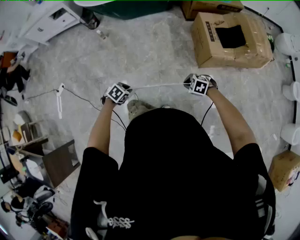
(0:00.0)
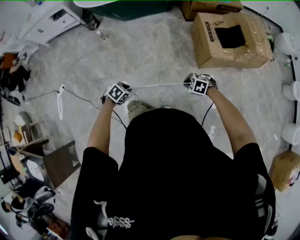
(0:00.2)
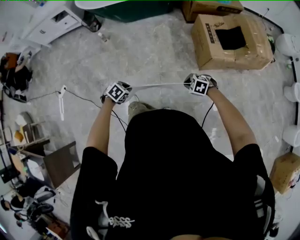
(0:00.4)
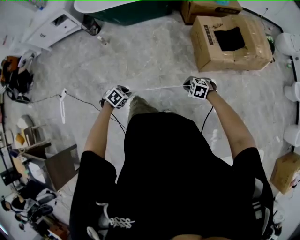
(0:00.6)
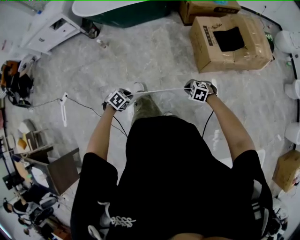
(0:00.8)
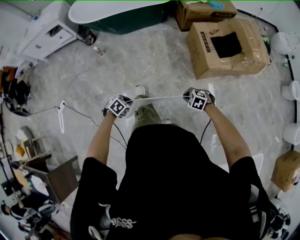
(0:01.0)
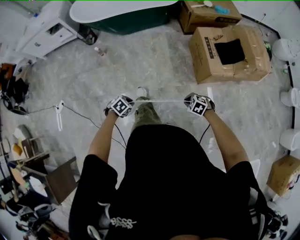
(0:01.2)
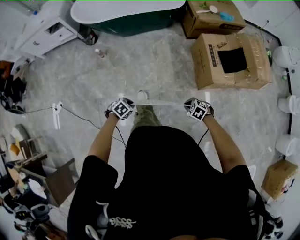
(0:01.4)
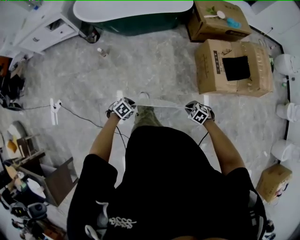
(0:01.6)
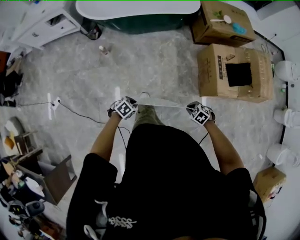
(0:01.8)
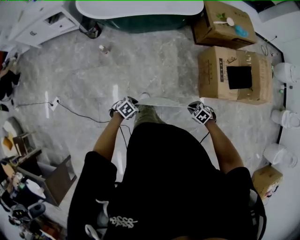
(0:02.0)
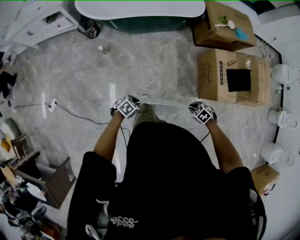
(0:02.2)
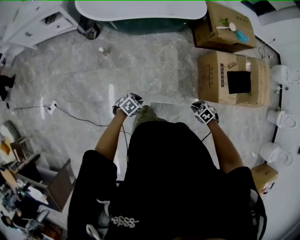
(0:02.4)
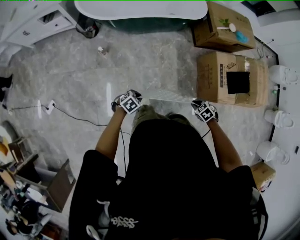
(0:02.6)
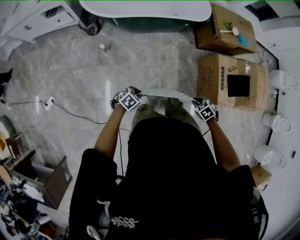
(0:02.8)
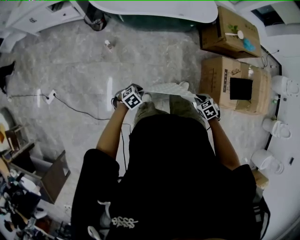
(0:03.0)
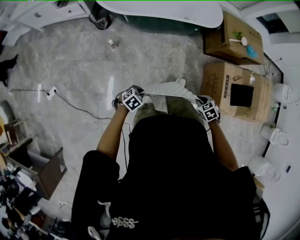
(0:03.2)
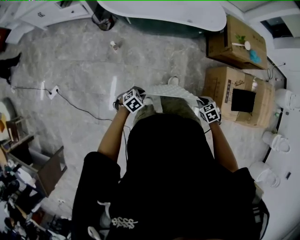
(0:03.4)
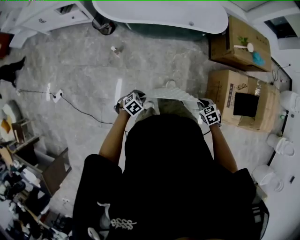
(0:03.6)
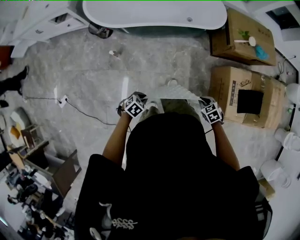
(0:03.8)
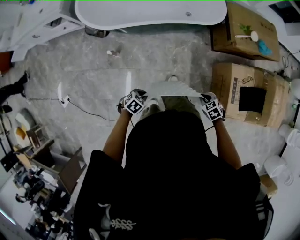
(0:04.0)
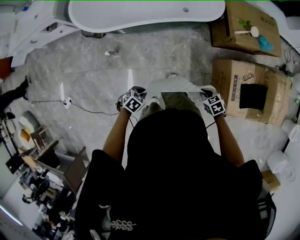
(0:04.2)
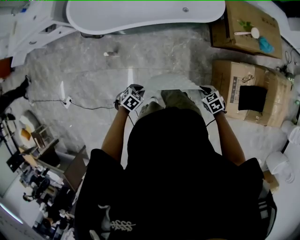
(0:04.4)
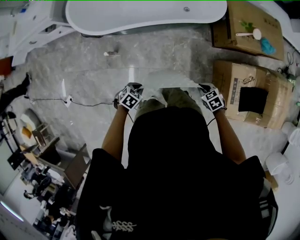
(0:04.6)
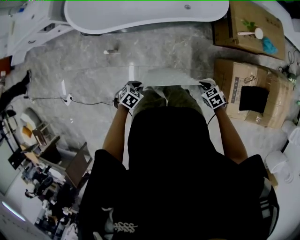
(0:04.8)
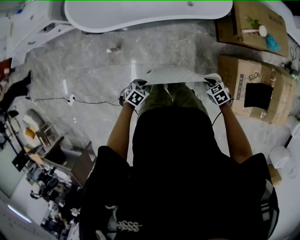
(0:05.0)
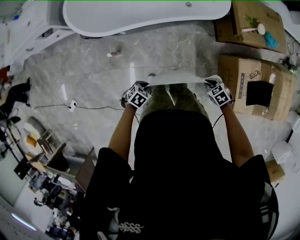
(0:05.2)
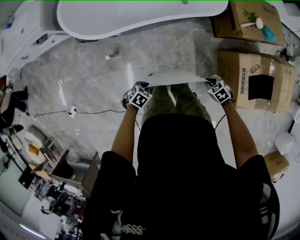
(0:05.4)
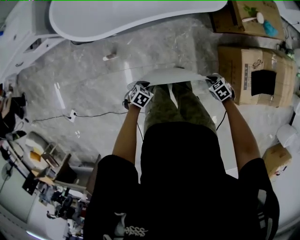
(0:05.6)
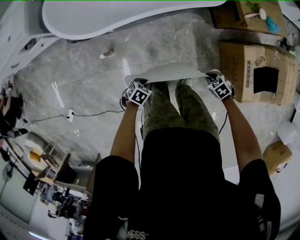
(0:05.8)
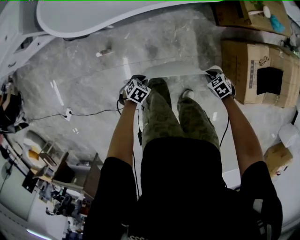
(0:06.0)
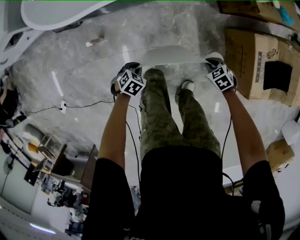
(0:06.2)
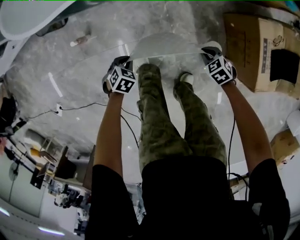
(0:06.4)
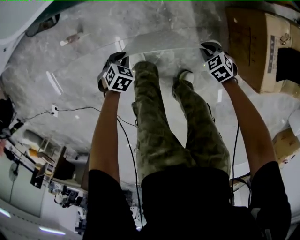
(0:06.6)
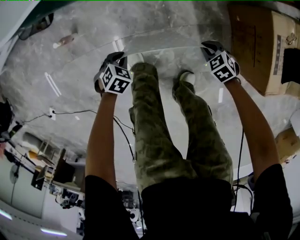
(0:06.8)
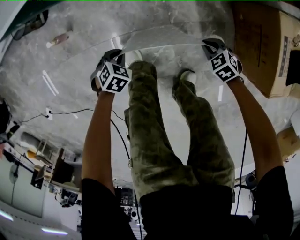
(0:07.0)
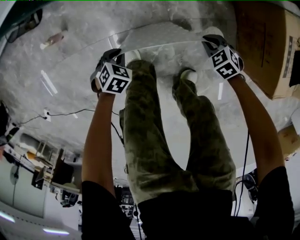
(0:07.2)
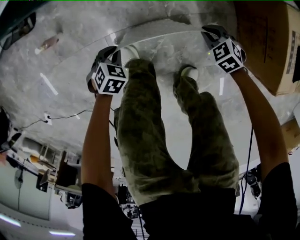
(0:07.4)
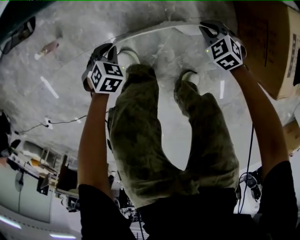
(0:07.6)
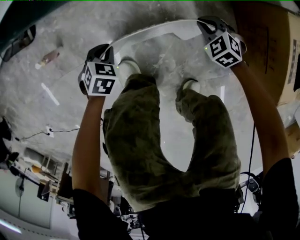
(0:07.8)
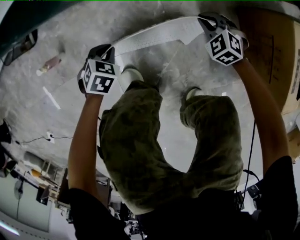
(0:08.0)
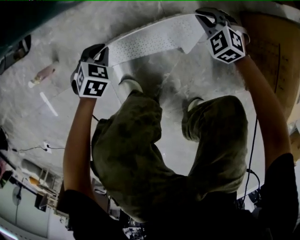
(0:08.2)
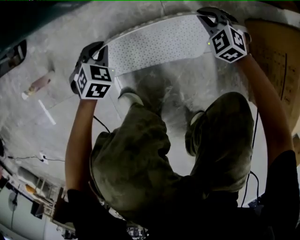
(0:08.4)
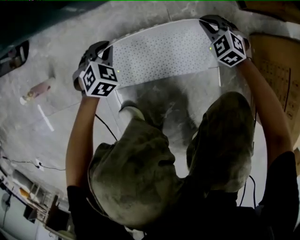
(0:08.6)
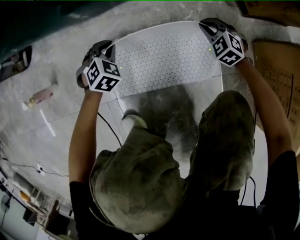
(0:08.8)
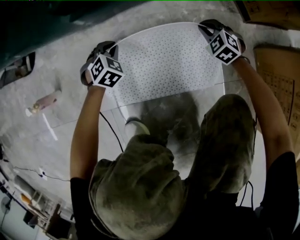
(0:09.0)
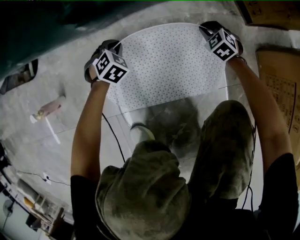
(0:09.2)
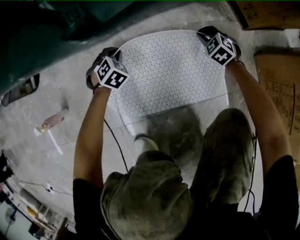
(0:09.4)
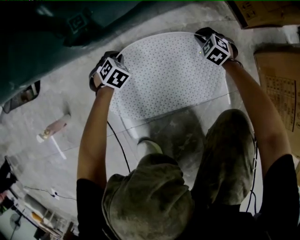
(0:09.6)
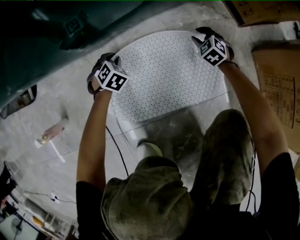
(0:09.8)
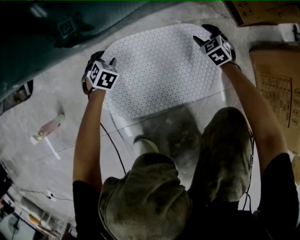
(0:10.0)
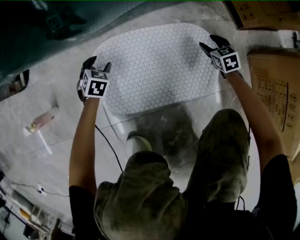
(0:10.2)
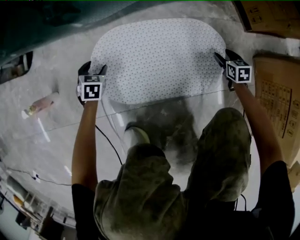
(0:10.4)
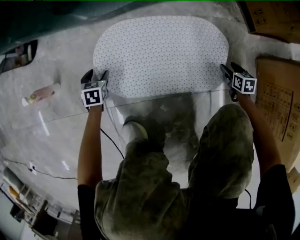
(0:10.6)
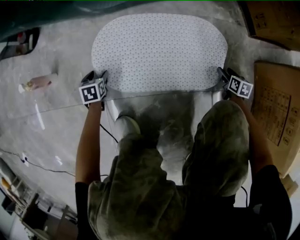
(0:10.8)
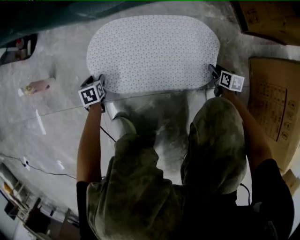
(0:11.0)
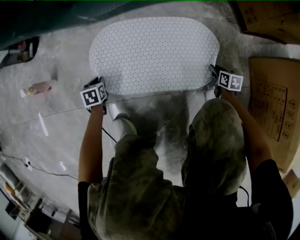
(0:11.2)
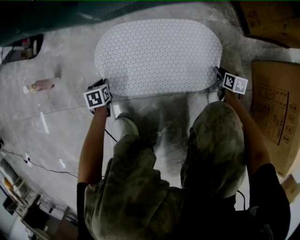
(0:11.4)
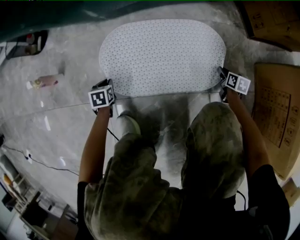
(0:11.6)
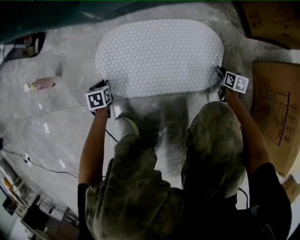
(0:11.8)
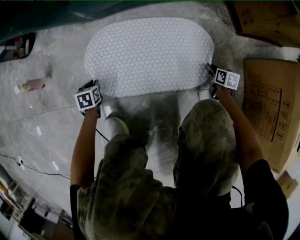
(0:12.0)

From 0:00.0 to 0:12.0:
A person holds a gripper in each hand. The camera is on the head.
From 0:00.0 to 0:01.6: The left gripper ends up roughly 20 cm from where it was, while the right gripper shifts by approximately 20 cm.
From 0:01.6 to 0:03.0: The left gripper ends up some 25 cm from where it was. Meanwhile the right gripper moves approximately 30 cm.
From 0:03.0 to 0:04.4: The right gripper moves some 30 cm; the left gripper changes place by approximately 25 cm.
From 0:04.4 to 0:06.0: Both grippers travel together downward, approximately 20 cm.
From 0:06.0 to 0:07.6: The grippers both shift downward by about 35 cm. The left gripper turns by about 20 degrees.
From 0:07.6 to 0:09.0: Both grippers move forward and downward, about 35 cm.
From 0:09.0 to 0:10.4: The right gripper is displaced to the right and downward by approximately 15 cm, rolls clockwise, seen from behind, by about 50 degrees, and opens up. The left gripper travels to the left and downward by about 15 cm, rotates roughly 30 degrees, and opens.
From 0:10.4 to 0:12.0: The left gripper goes approximately 15 cm backward, rotates about 30 degrees, and closes its fingers, while the right gripper heads backward, covering about 10 cm, rotates roughly 20 degrees, and closes up.

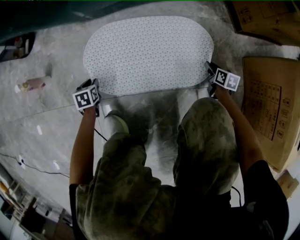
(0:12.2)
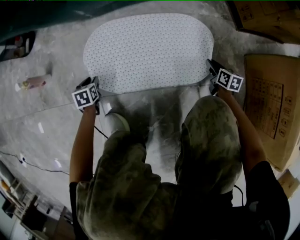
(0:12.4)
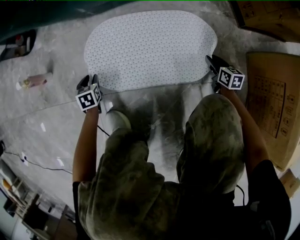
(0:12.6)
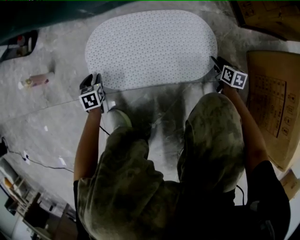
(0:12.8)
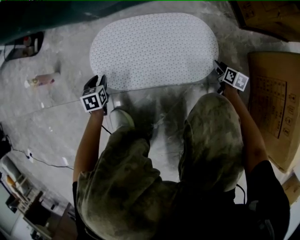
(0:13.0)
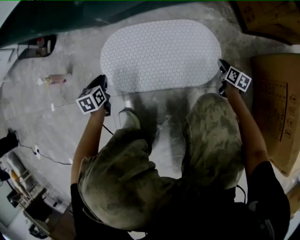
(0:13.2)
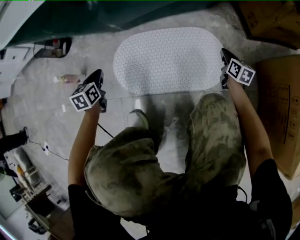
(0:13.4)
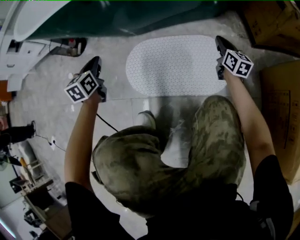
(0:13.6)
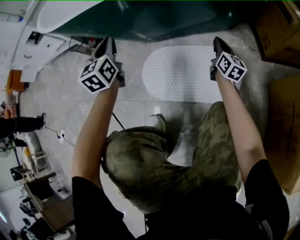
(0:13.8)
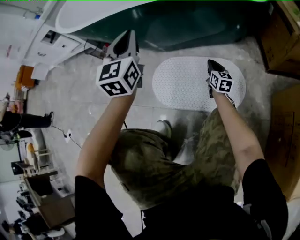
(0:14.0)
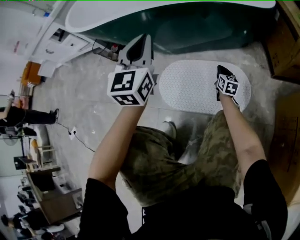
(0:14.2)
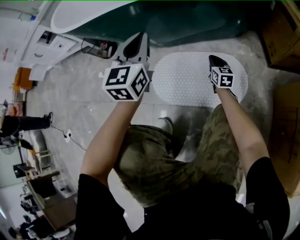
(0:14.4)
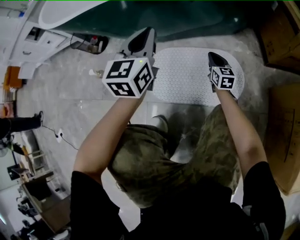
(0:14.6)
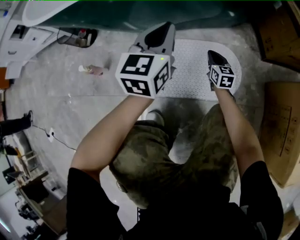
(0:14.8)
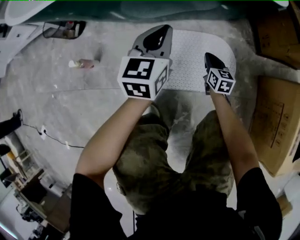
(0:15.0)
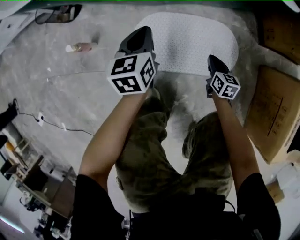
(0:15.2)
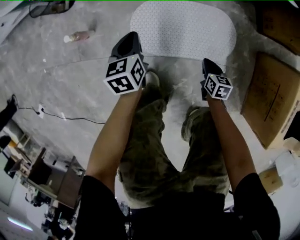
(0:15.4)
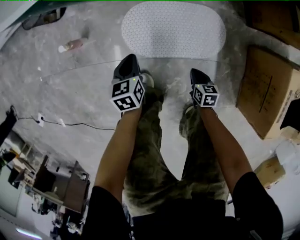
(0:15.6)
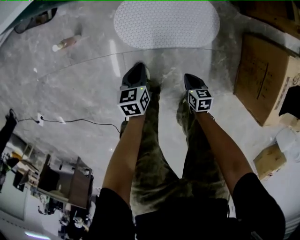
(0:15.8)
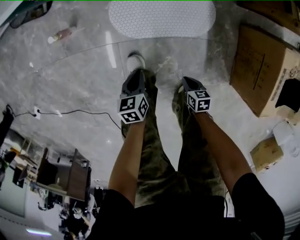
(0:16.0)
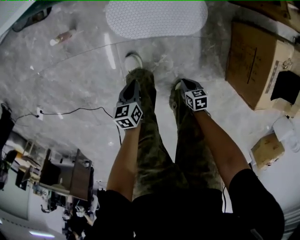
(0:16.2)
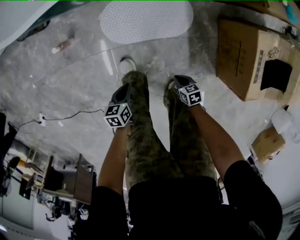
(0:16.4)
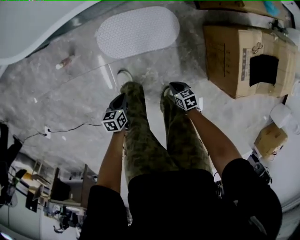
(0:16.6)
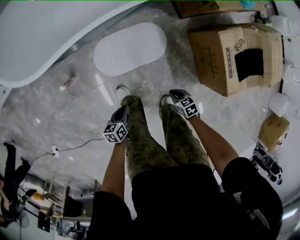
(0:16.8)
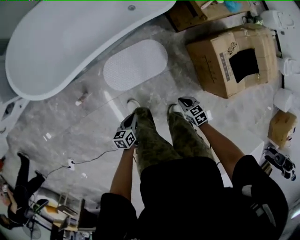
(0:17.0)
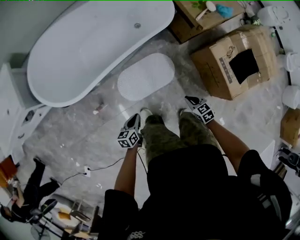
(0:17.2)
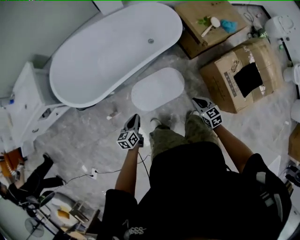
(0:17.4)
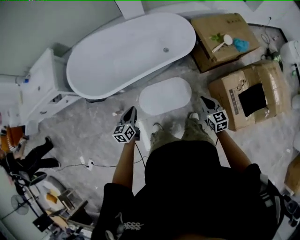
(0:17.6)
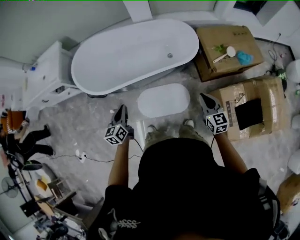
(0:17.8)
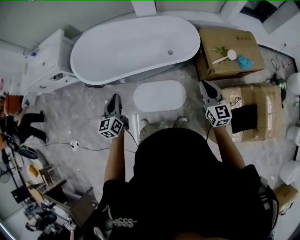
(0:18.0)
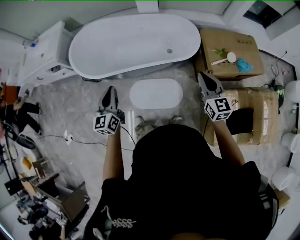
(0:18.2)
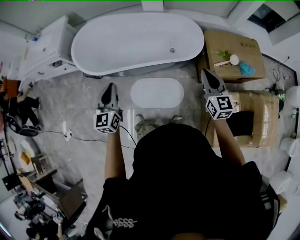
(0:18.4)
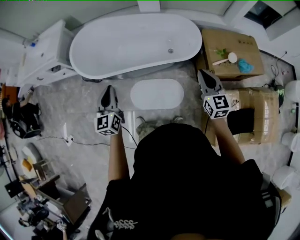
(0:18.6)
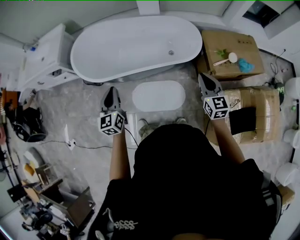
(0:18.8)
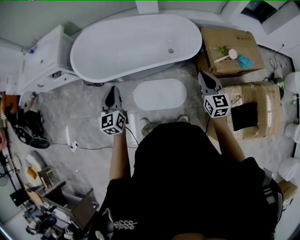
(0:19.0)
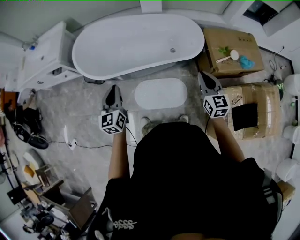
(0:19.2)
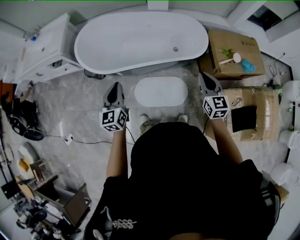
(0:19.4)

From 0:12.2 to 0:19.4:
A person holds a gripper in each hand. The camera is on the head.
From 0:12.2 to 0:13.6: The left gripper shifts some 35 cm upward, tilts its fingers about 30 degrees upward, and closes. Meanwhile the right gripper shifts roughly 25 cm upward and forward, points its fingers roughly 30 degrees further upward, and opens, then closes once more.
From 0:13.6 to 0:15.0: The right gripper heads to the left, covering roughly 15 cm, while the left gripper goes roughly 15 cm to the right, moves approximately 25 cm upward and comes back, and turns by some 20 degrees.
From 0:15.0 to 0:16.6: The left gripper moves backward, about 30 cm, and tilts its fingers approximately 30 degrees downward; the right gripper is displaced backward and upward by about 40 cm, and turns by about 40 degrees.
From 0:16.6 to 0:18.0: The grippers both shift upward by roughly 60 cm. The right gripper points its fingers some 50 degrees further upward. The left gripper angles its fingers upward, by approximately 40 degrees.
From 0:18.0 to 0:19.4: The two grippers go about 10 cm to the left.

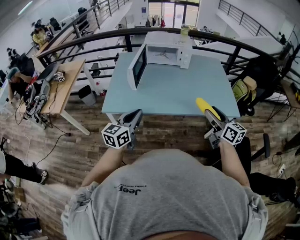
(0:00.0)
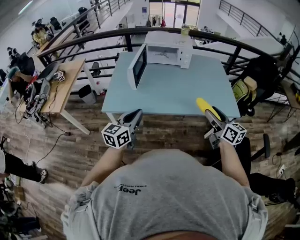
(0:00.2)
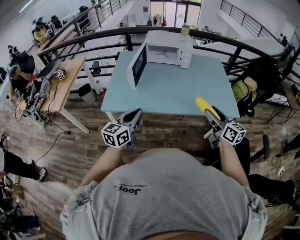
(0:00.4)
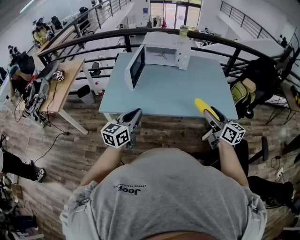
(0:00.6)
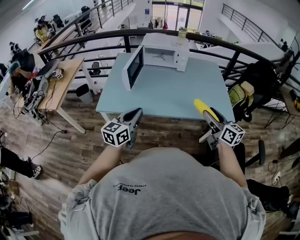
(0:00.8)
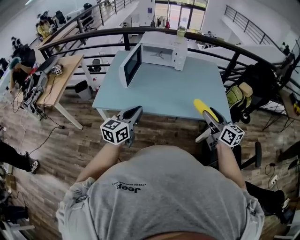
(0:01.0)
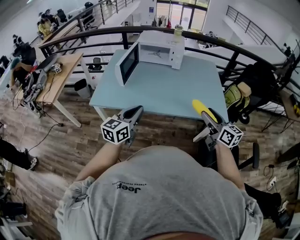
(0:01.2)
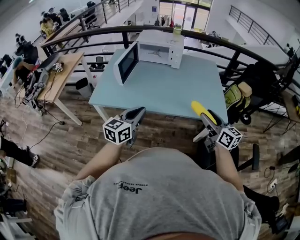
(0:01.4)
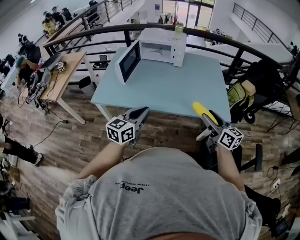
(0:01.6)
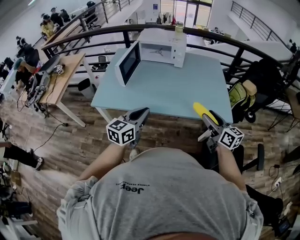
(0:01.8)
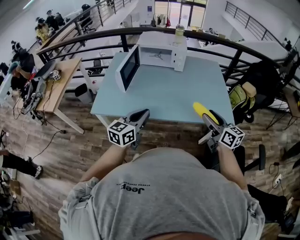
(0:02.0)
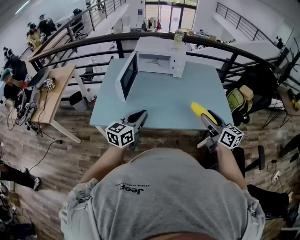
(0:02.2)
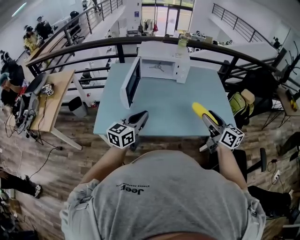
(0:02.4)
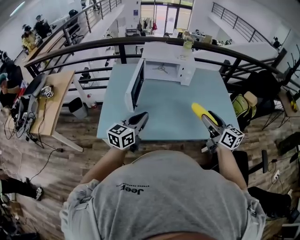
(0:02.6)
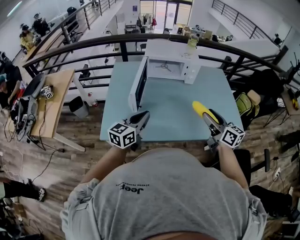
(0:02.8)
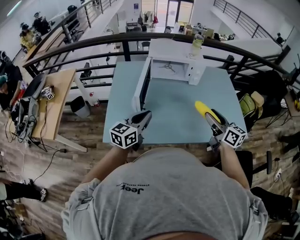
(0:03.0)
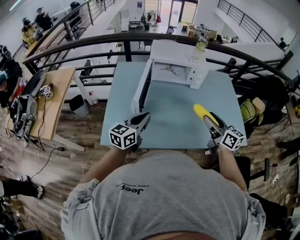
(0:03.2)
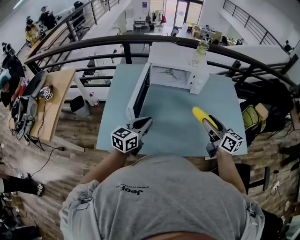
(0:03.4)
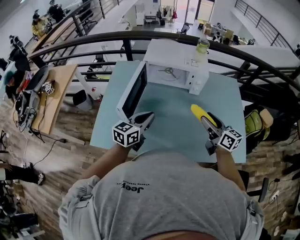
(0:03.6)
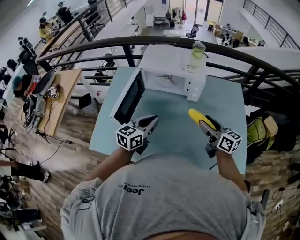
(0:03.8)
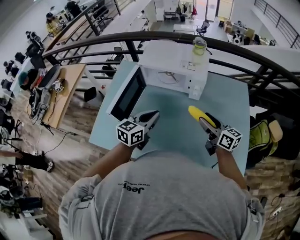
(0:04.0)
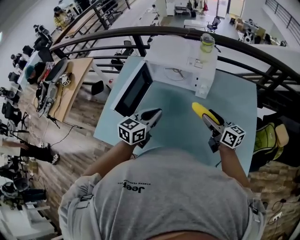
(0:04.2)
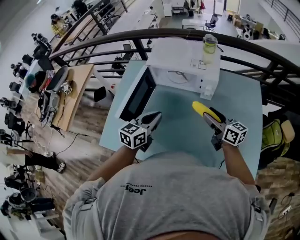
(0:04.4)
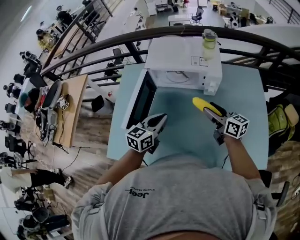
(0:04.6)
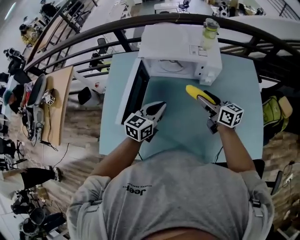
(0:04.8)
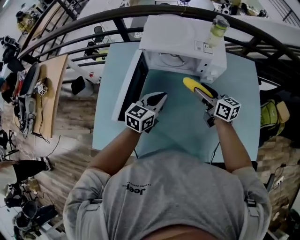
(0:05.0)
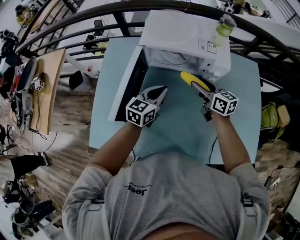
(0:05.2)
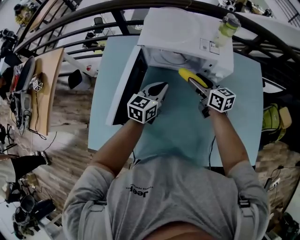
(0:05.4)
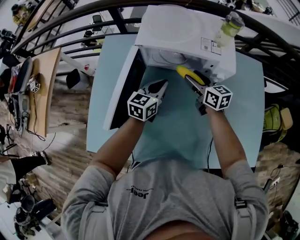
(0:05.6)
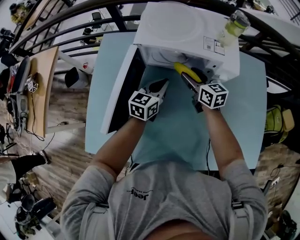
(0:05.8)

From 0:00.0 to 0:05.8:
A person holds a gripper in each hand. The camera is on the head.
From 0:00.0 to 0:01.4: Both grippers move to the right, some 15 cm.
From 0:01.4 to 0:02.8: The left gripper moves forward and to the left, approximately 30 cm. Meanwhile the right gripper travels to the left and forward by roughly 30 cm.
From 0:02.8 to 0:04.4: The left gripper shifts approximately 25 cm forward and to the right, while the right gripper heads forward, covering about 30 cm, and swivels some 20 degrees.
From 0:04.4 to 0:05.8: The left gripper moves forward and downward, approximately 25 cm; the right gripper moves forward, to the left and downward, approximately 25 cm.
